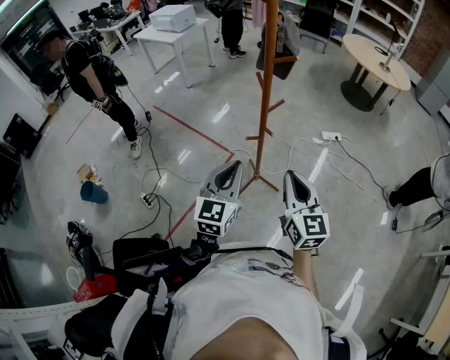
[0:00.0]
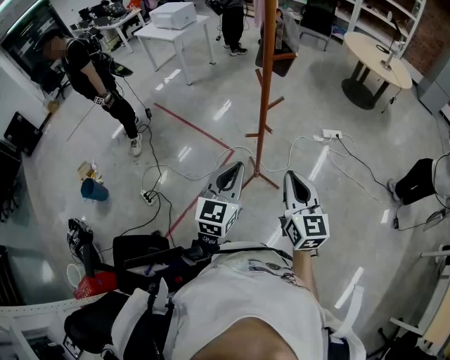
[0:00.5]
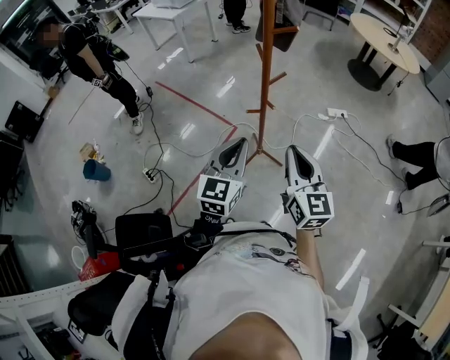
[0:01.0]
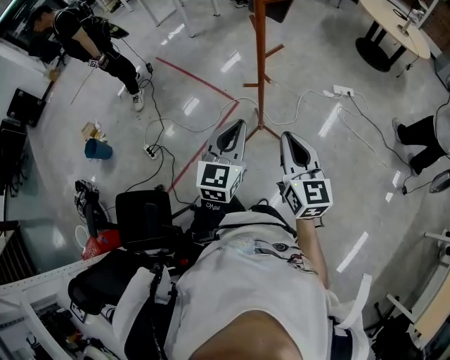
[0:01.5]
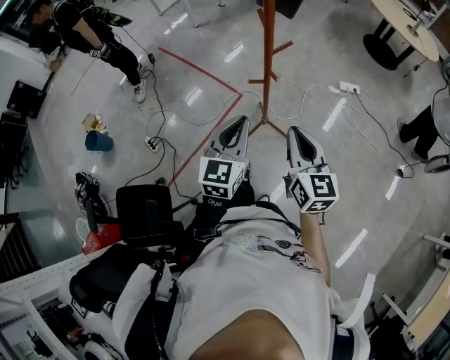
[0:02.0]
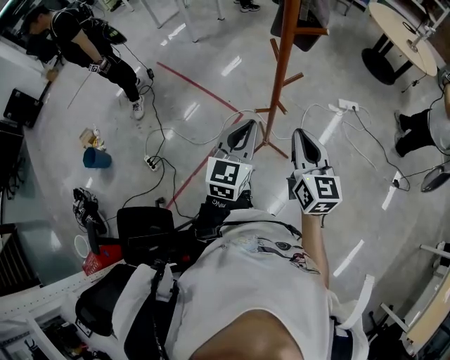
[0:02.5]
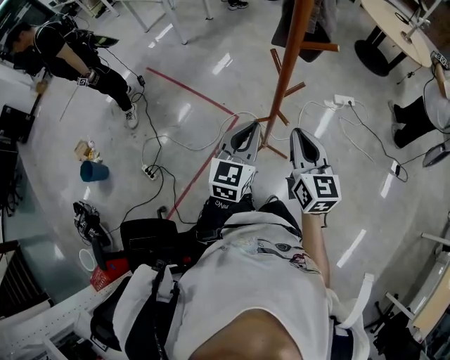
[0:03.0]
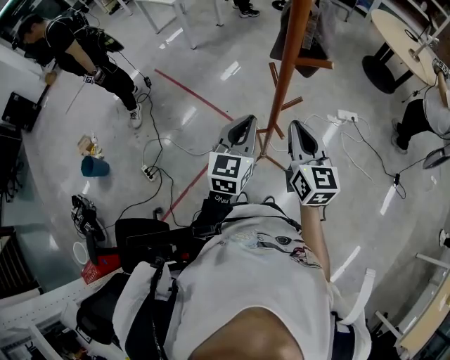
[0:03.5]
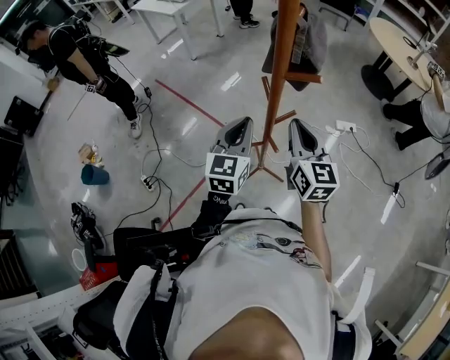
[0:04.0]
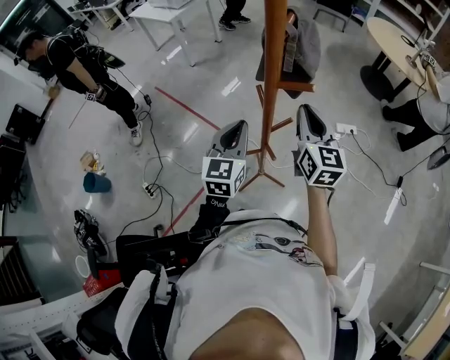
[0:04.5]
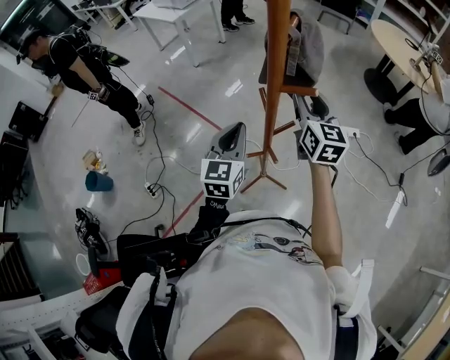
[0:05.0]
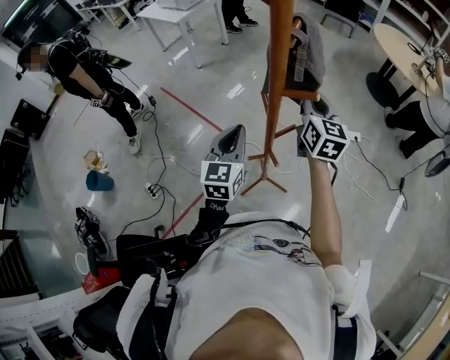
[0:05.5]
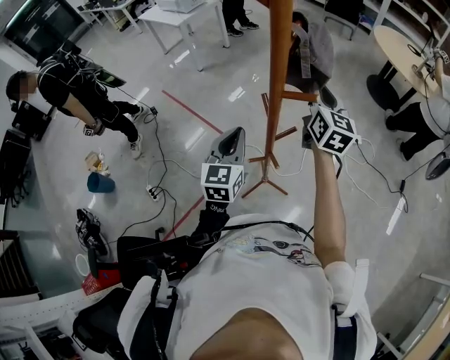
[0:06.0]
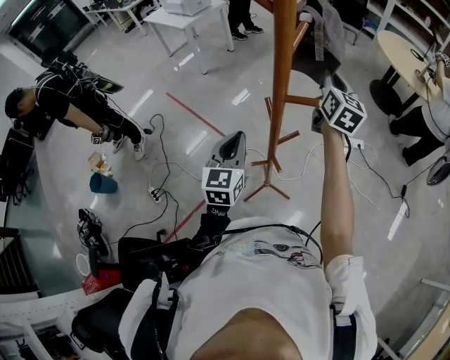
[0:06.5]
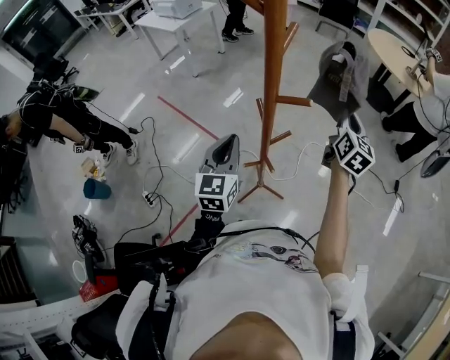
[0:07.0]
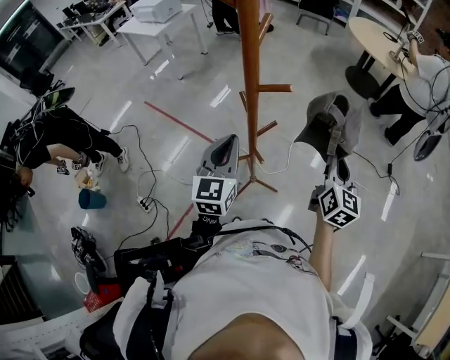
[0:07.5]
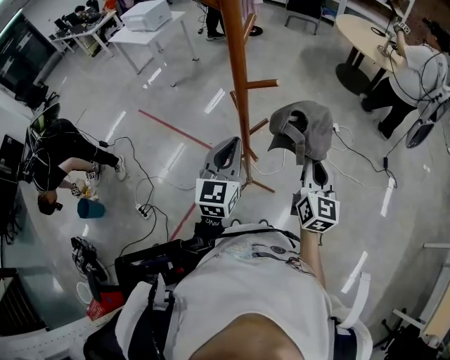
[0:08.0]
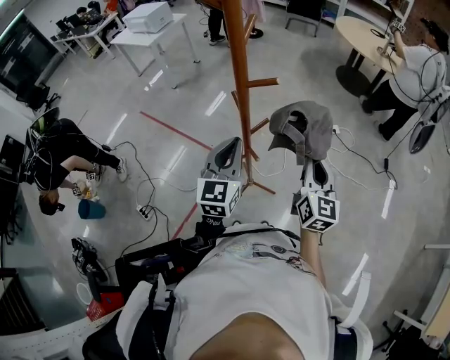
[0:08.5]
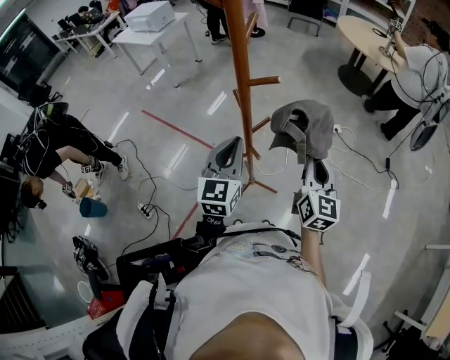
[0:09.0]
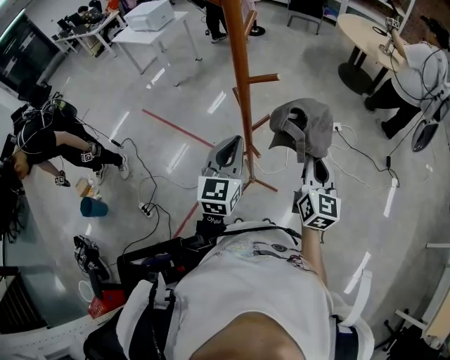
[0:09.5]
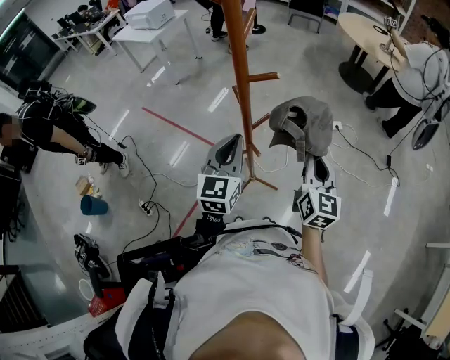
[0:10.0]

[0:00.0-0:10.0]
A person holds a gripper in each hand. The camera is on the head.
0:00.0 to 0:02.0: The left gripper moves some 5 cm, while the right gripper shifts by about 5 cm.
0:02.0 to 0:04.0: The two grippers go roughly 25 cm forward.
0:04.0 to 0:06.0: The right gripper heads forward and to the right, covering approximately 15 cm, and opens, then closes again.
0:06.0 to 0:08.0: The right gripper moves backward and to the right, roughly 25 cm. The left gripper moves to the right and backward, some 10 cm.
0:08.0 to 0:10.0: Neither gripper changes place.

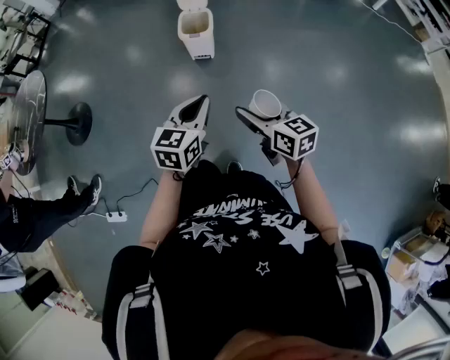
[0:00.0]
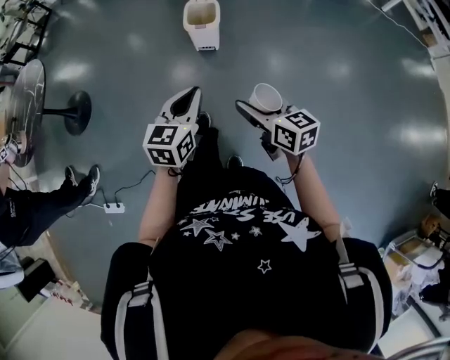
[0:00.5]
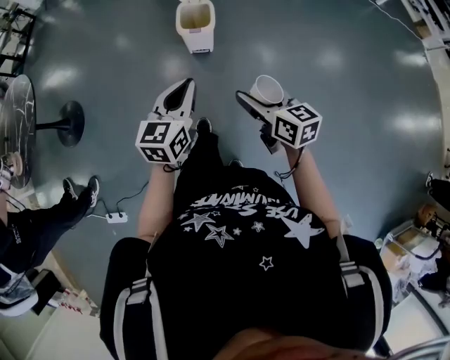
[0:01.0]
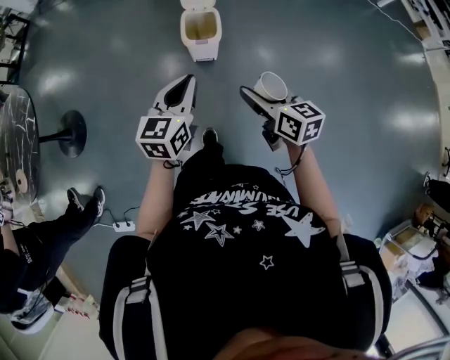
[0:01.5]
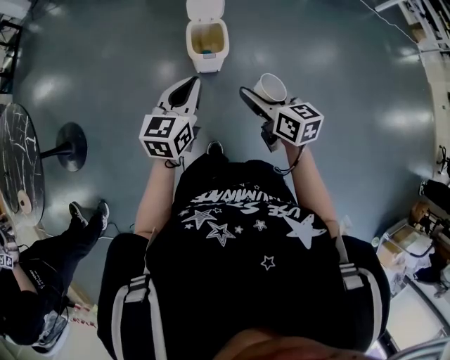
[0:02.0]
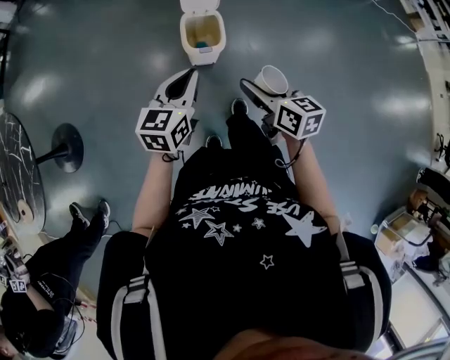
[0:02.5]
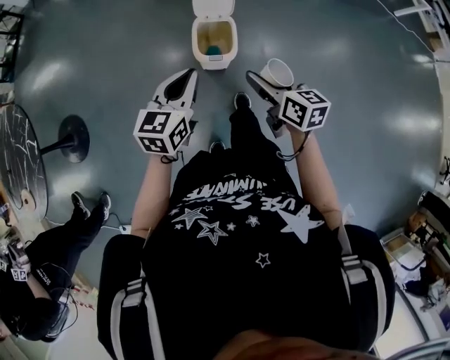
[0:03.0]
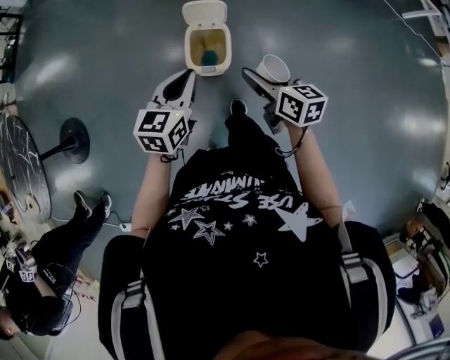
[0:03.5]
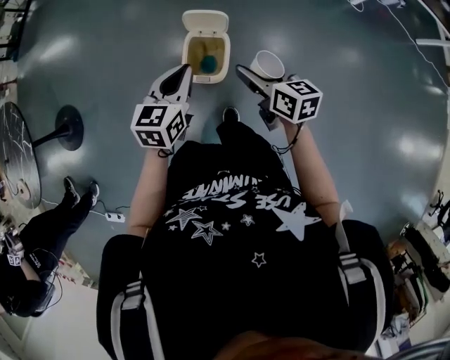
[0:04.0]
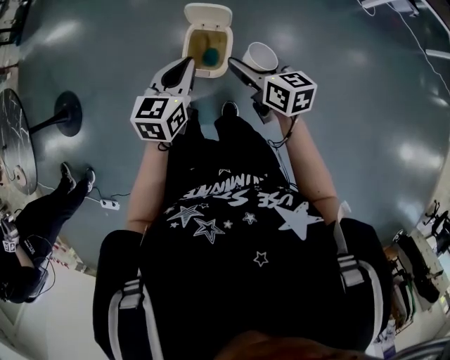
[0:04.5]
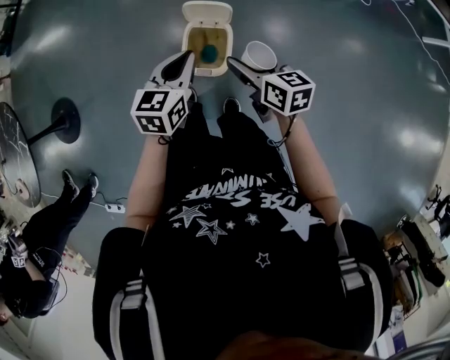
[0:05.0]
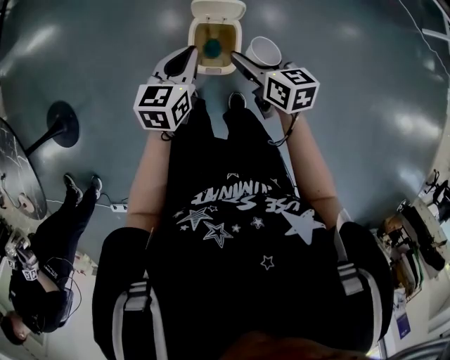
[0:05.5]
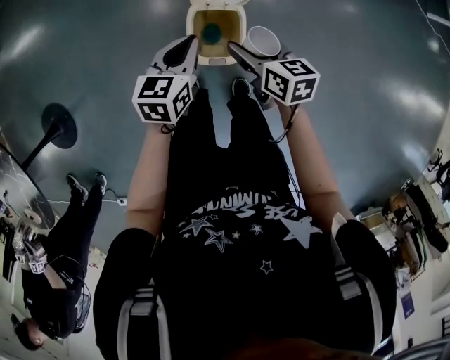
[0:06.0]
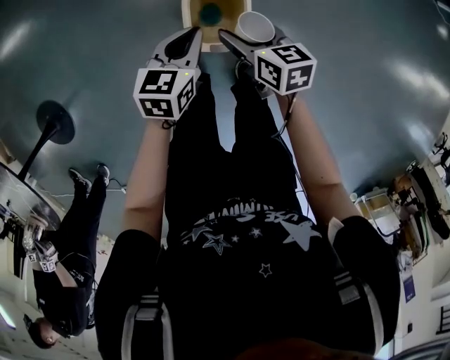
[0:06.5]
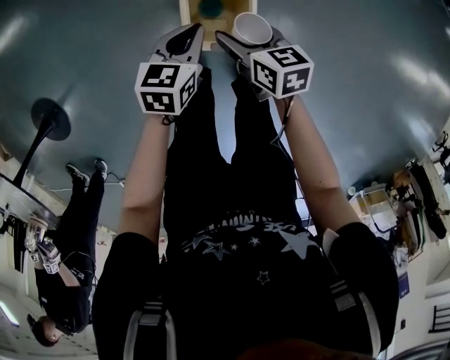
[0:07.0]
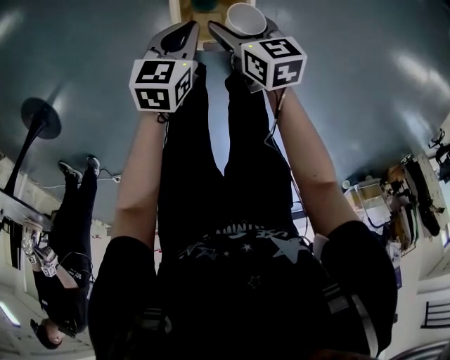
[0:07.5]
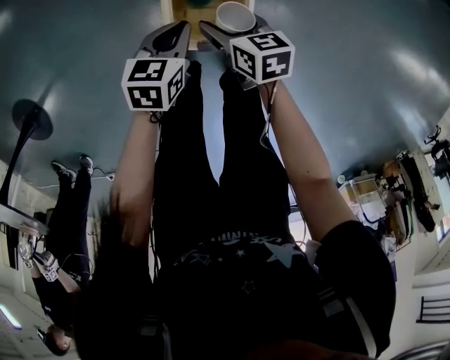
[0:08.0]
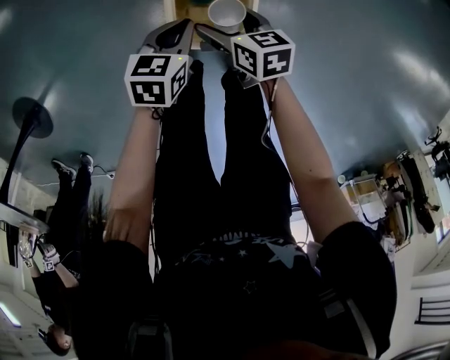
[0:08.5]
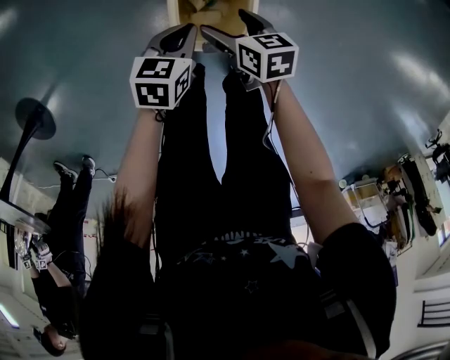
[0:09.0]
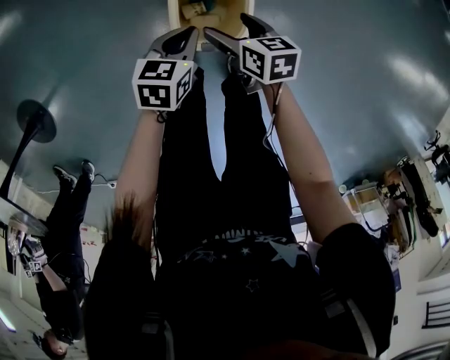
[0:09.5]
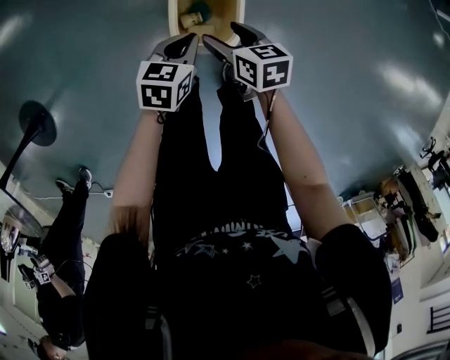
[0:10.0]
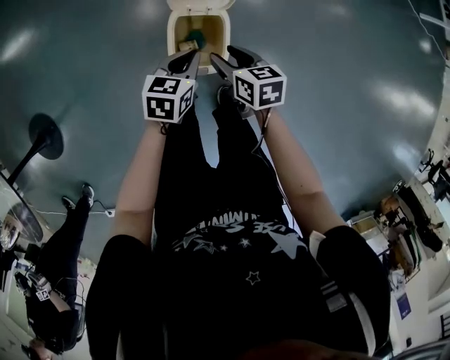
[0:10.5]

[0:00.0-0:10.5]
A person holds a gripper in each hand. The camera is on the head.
0:00.0 to 0:02.0: Both grippers travel together forward, some 35 cm.
0:02.0 to 0:04.0: The grippers both shift forward by approximately 25 cm.
0:04.0 to 0:06.5: The left gripper heads downward and forward, covering some 20 cm. Meanwhile the right gripper heads downward, to the left and forward, covering approximately 25 cm.
0:06.5 to 0:08.5: The grippers both shift downward by about 15 cm.
0:08.5 to 0:10.5: Both grippers move upward, about 15 cm. The right gripper closes.

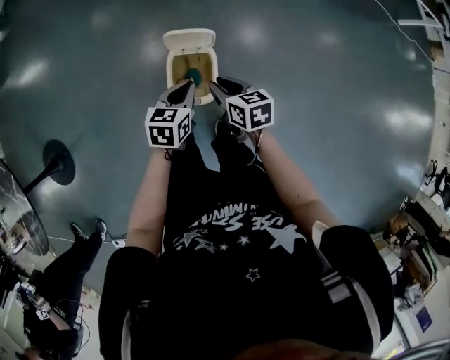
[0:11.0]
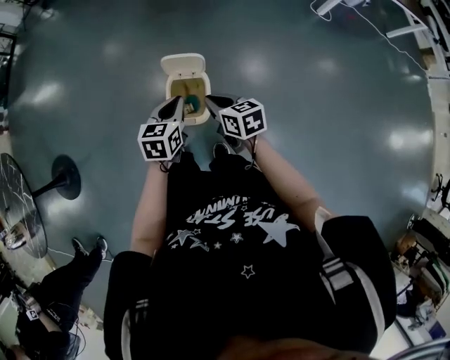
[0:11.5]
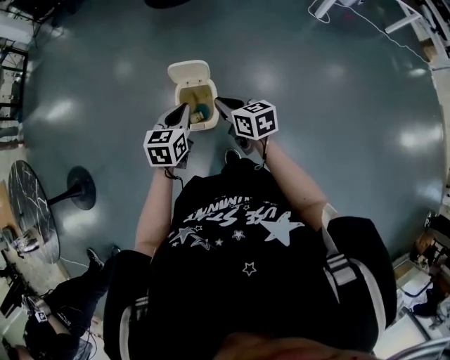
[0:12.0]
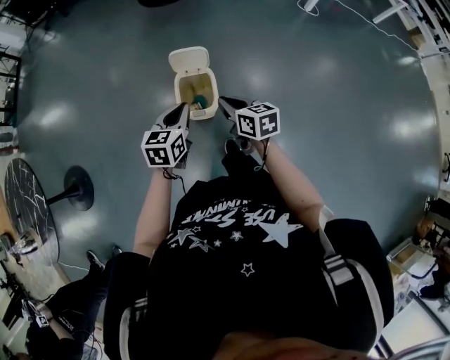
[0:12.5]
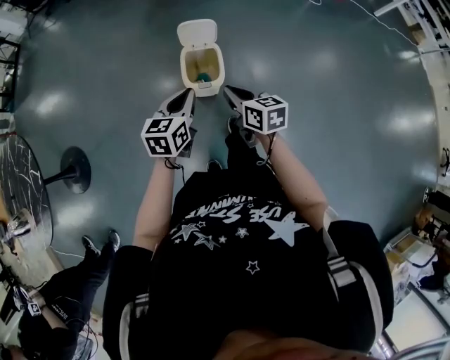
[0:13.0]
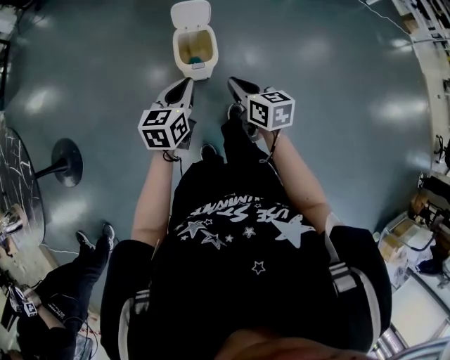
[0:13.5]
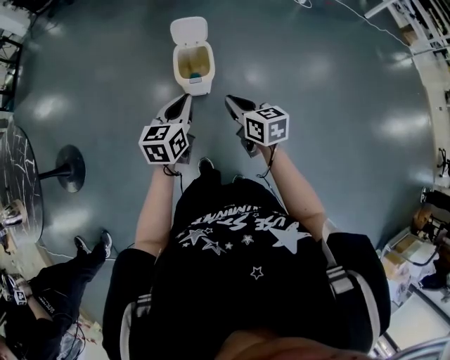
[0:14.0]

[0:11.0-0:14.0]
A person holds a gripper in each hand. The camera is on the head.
0:11.0 to 0:12.5: The right gripper heads backward and upward, covering approximately 15 cm; the left gripper shifts roughly 15 cm upward and backward.
0:12.5 to 0:14.0: Both grippers move backward, about 20 cm.

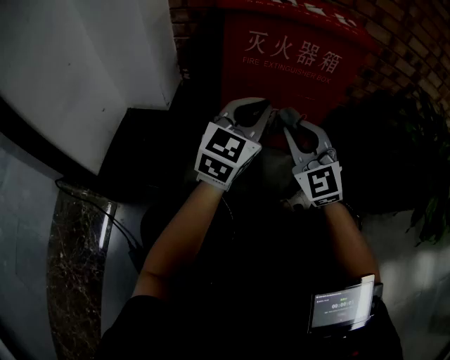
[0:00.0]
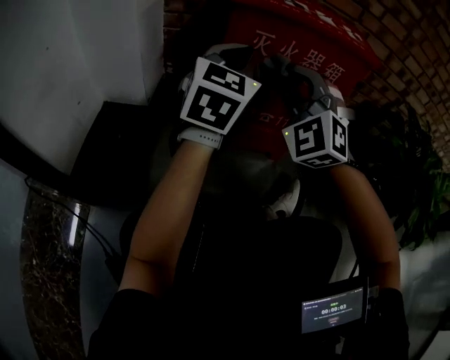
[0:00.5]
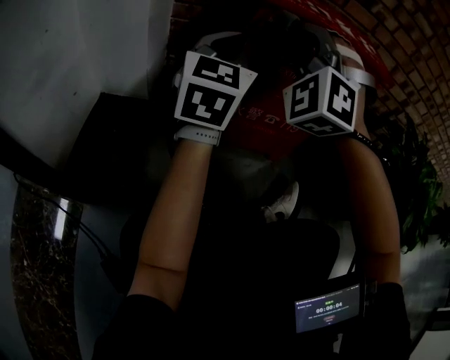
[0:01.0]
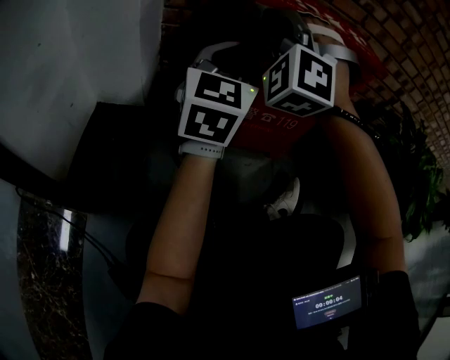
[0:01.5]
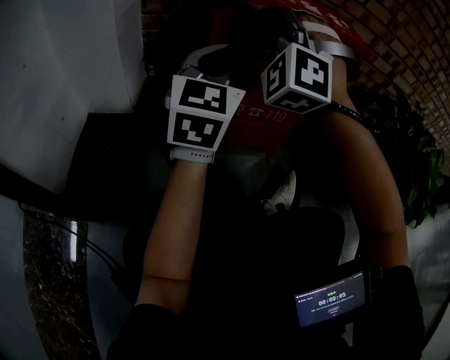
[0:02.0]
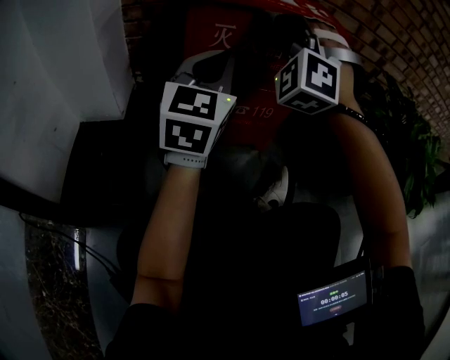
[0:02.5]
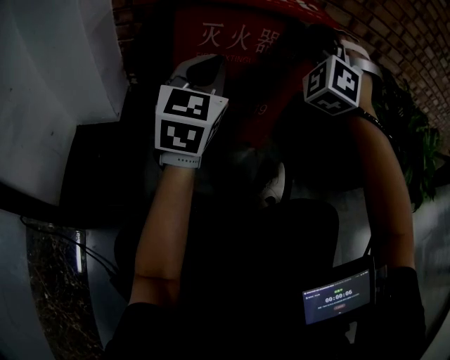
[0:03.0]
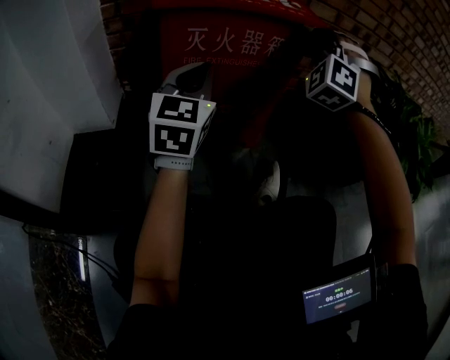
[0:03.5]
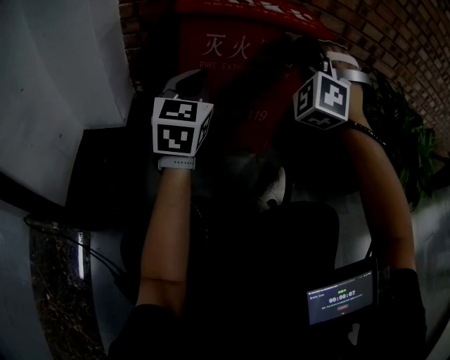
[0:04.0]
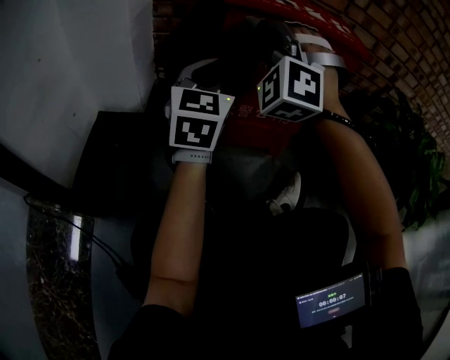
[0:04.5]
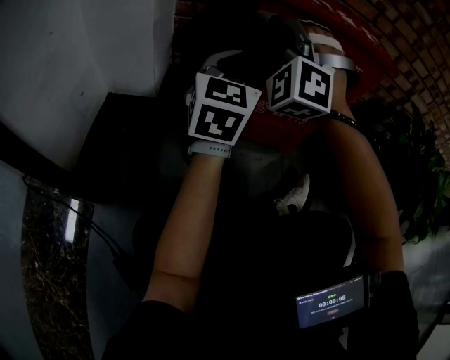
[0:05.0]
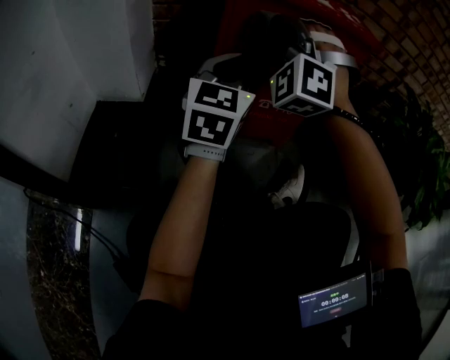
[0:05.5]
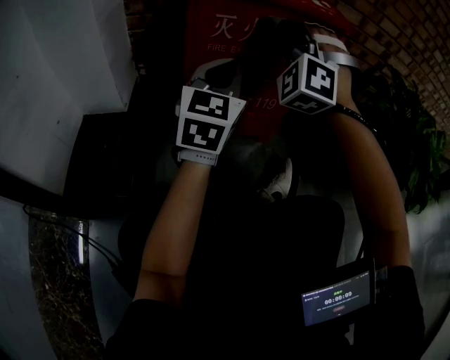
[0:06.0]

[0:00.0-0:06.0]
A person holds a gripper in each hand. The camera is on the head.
0:00.0 to 0:02.0: The left gripper moves some 10 cm.
